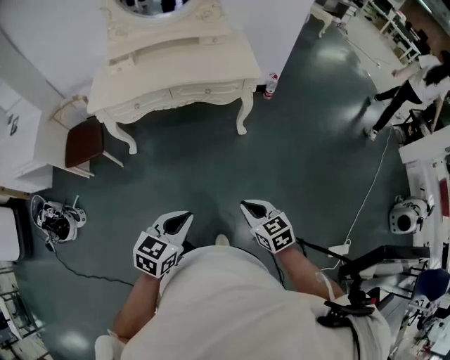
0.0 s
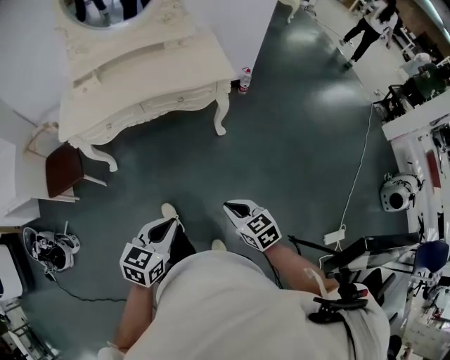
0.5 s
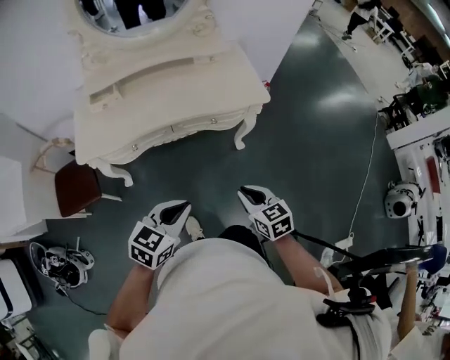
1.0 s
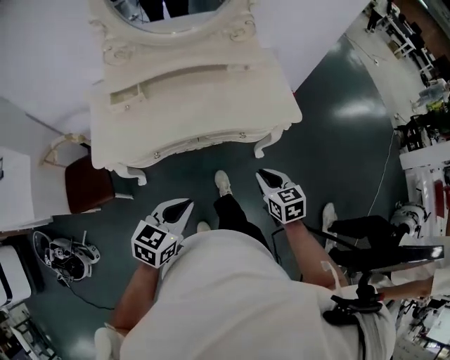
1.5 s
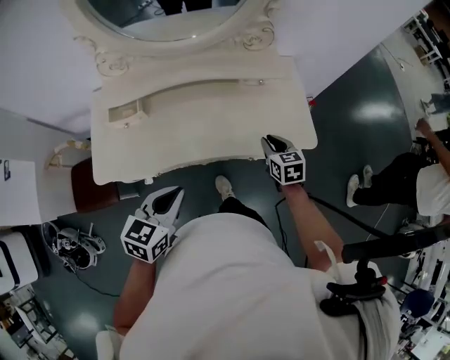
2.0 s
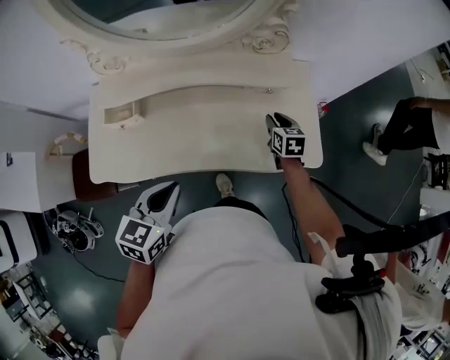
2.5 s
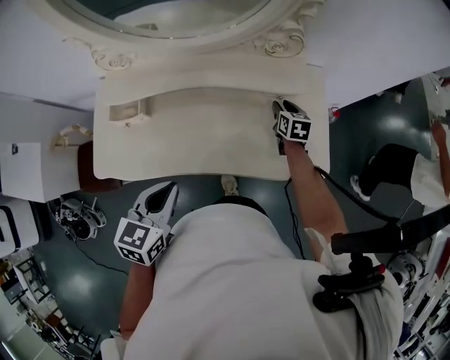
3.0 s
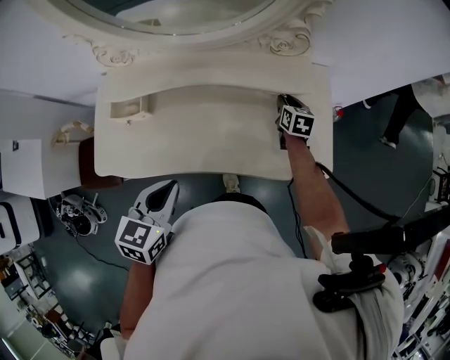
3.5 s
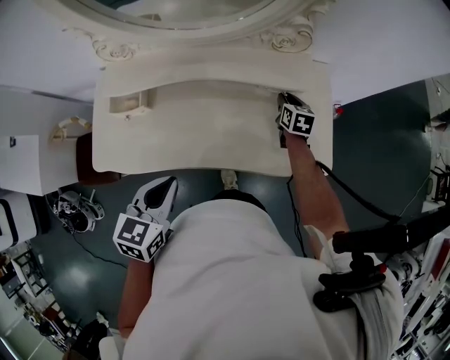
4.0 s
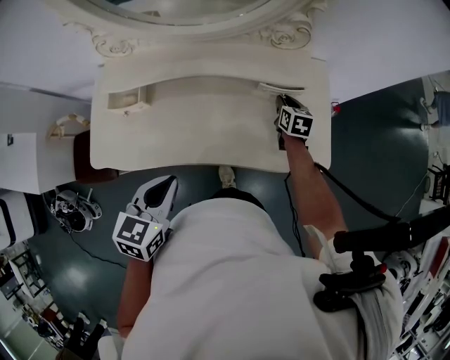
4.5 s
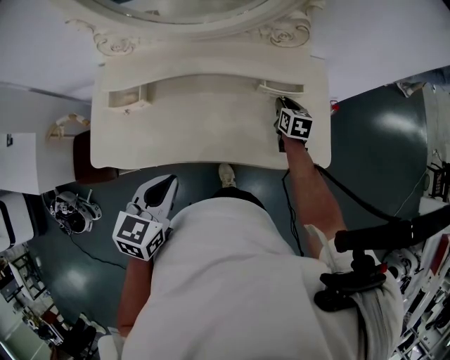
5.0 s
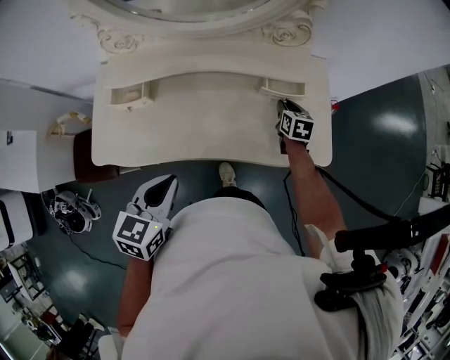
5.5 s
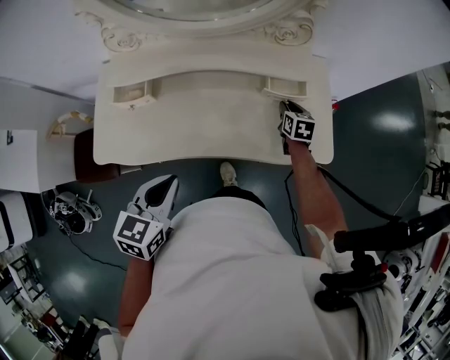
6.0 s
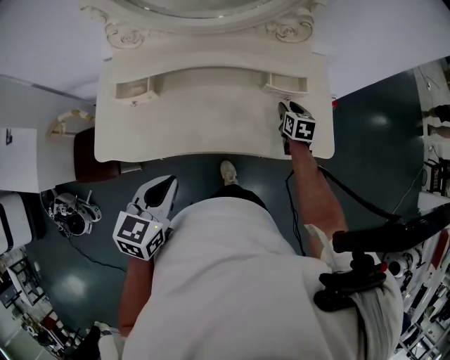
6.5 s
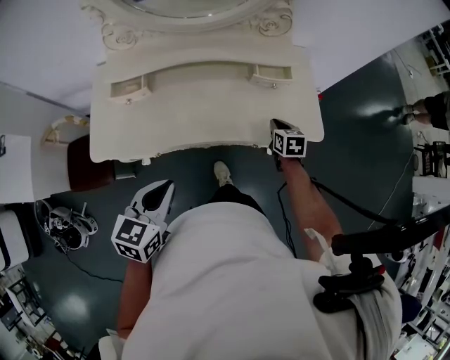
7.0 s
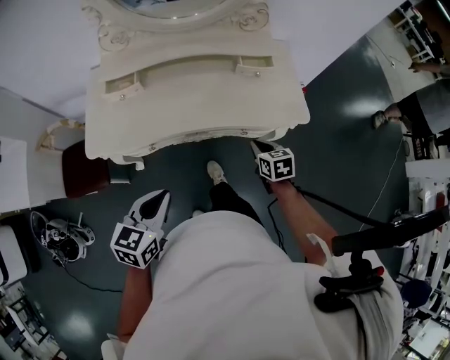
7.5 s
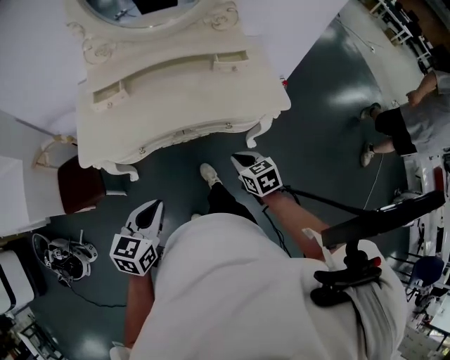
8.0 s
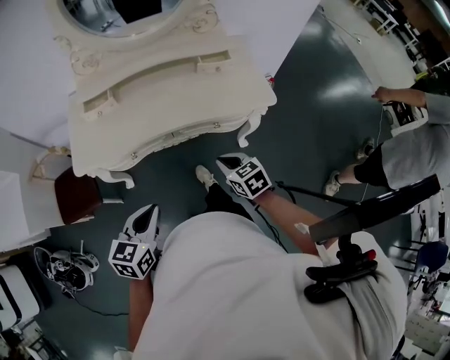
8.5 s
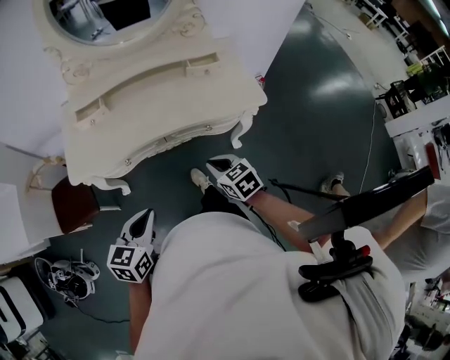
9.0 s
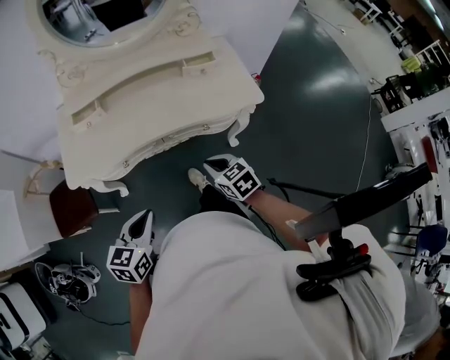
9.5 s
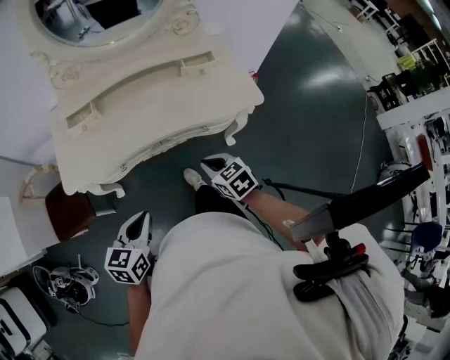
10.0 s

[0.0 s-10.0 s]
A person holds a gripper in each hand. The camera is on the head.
0.0 to 2.0 s: The pair of grippers is taken forward, approximately 70 cm.
2.0 to 4.0 s: The right gripper heads forward, covering approximately 25 cm, while the left gripper moves forward, approximately 10 cm.
4.0 to 6.0 s: The left gripper ends up approximately 5 cm from where it was, while the right gripper shifts some 5 cm backward.
6.0 to 8.0 s: The left gripper travels backward by approximately 25 cm; the right gripper heads backward, covering some 40 cm, and closes up.
8.0 to 10.0 s: The grippers make only small movements.

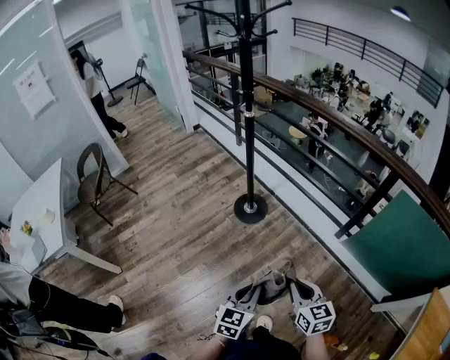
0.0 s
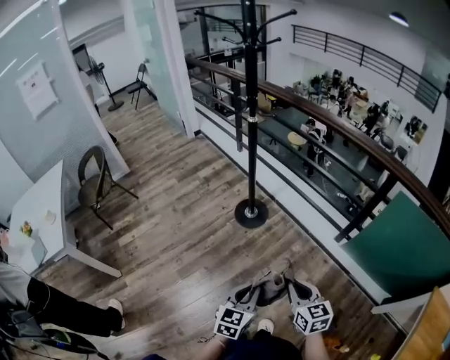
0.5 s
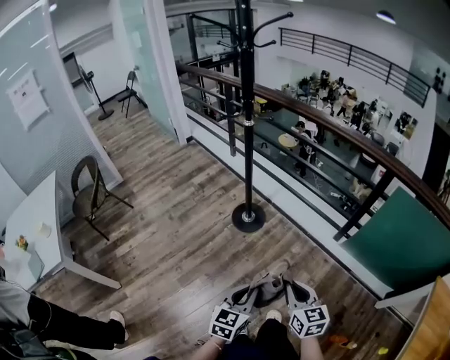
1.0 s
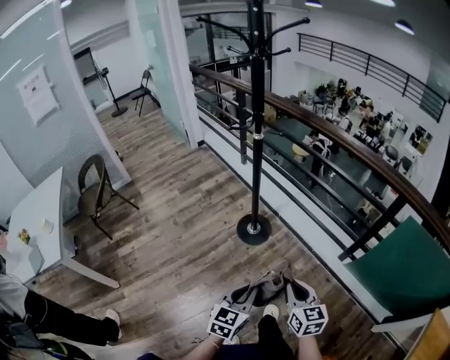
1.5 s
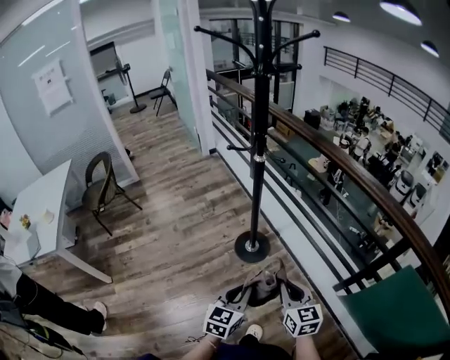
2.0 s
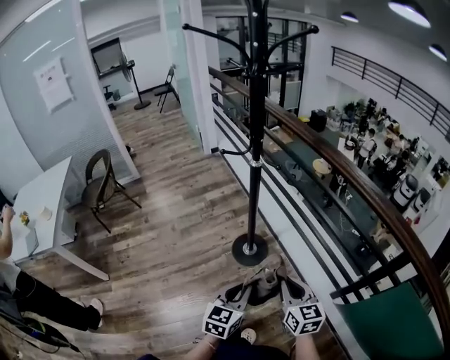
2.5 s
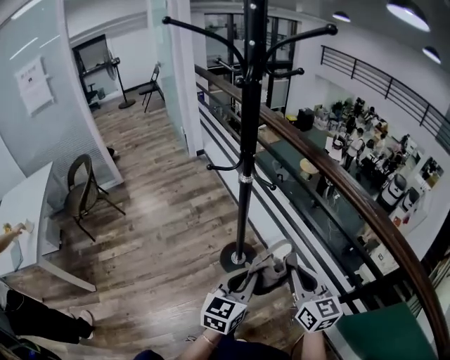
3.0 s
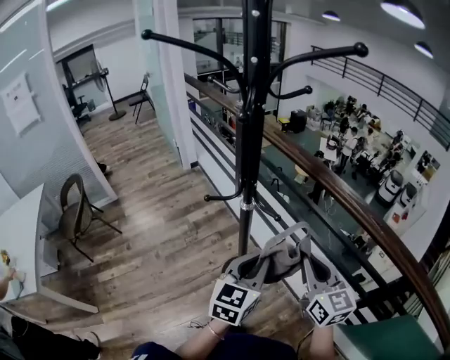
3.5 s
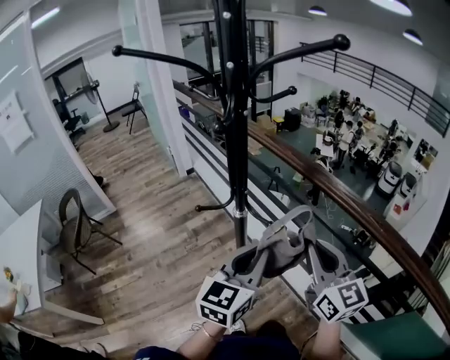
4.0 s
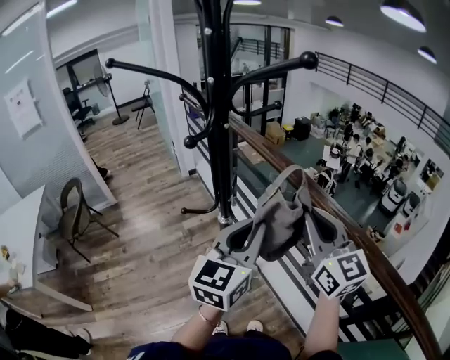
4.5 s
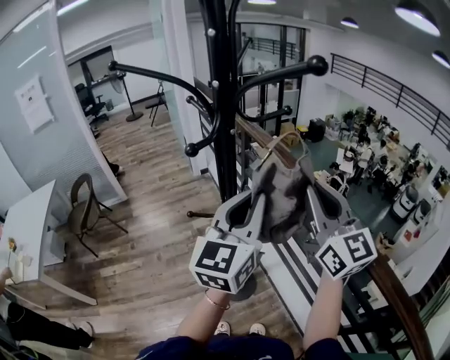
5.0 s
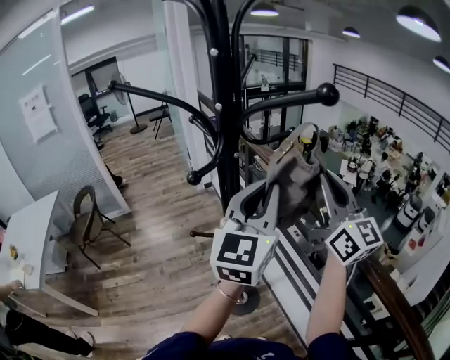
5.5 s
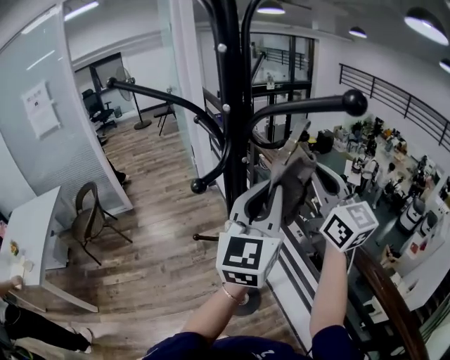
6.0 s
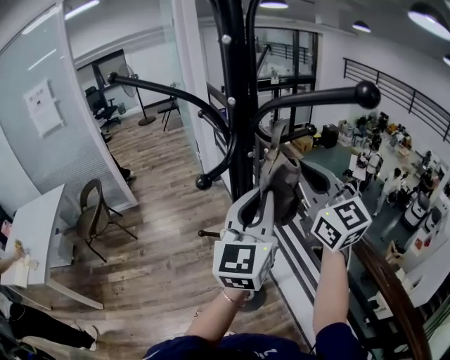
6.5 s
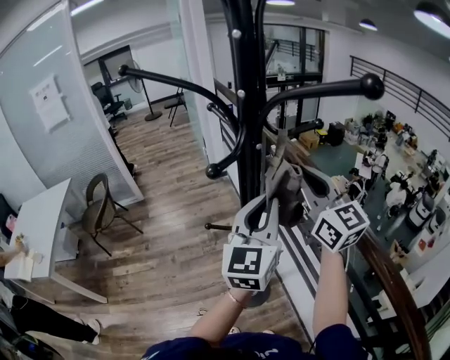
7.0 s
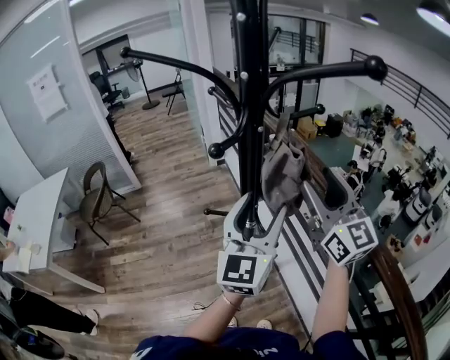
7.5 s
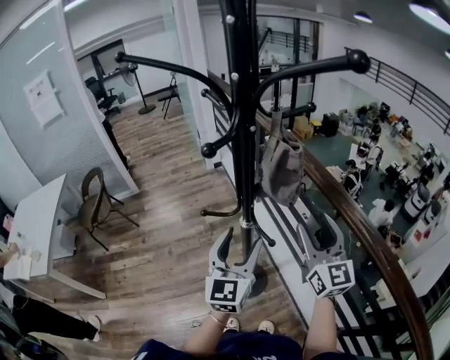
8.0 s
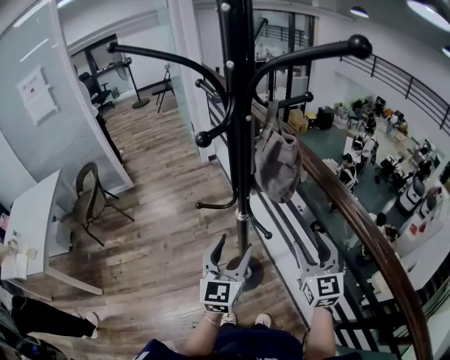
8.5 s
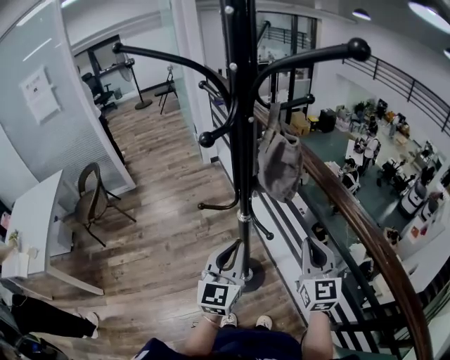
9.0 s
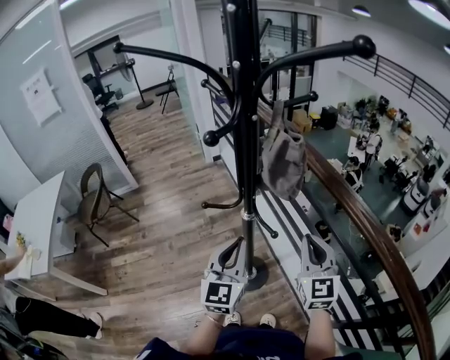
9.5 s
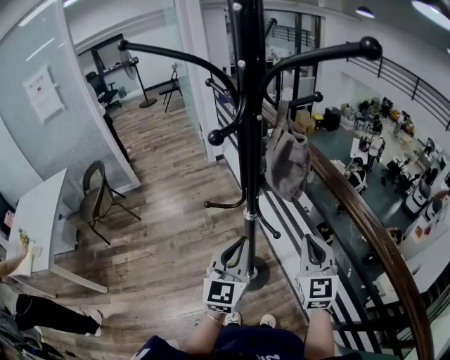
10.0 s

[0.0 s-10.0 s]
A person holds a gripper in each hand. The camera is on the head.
0.0 to 2.0 s: The two grippers go roughly 20 cm forward.
2.0 to 4.0 s: Both grippers move forward and upward, about 40 cm. The right gripper turns by roughly 20 degrees.
4.0 to 6.0 s: The left gripper heads upward and forward, covering approximately 25 cm, and rotates roughly 30 degrees; the right gripper heads forward and upward, covering roughly 30 cm, and changes its angle by approximately 20 degrees.
6.0 to 8.0 s: The left gripper travels downward and to the left by approximately 20 cm, and opens. The right gripper moves downward and backward, approximately 20 cm, and opens.
8.0 to 10.0 s: The left gripper closes. Meanwhile the right gripper shifts approximately 10 cm downward, rotates about 20 degrees, and closes up.

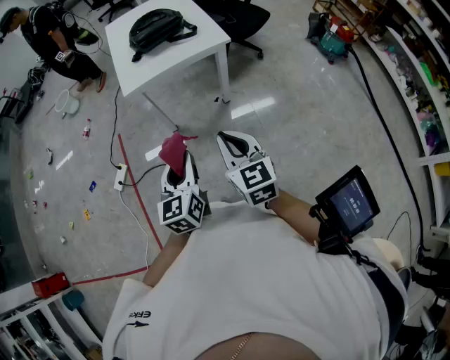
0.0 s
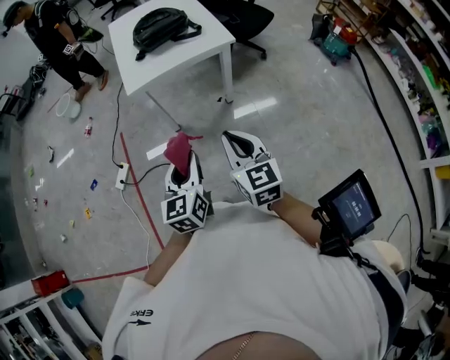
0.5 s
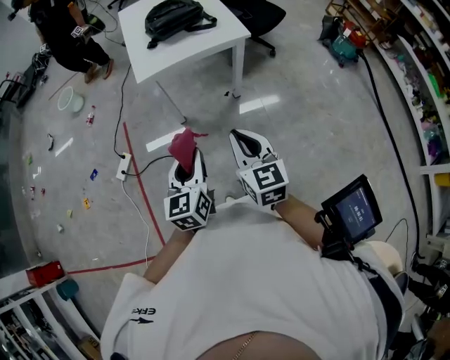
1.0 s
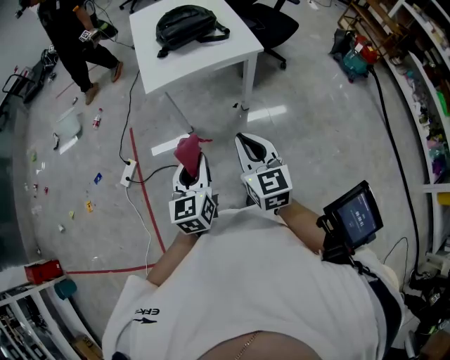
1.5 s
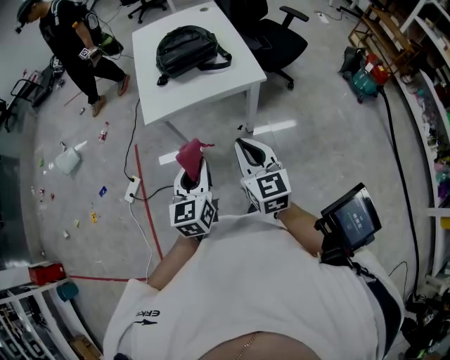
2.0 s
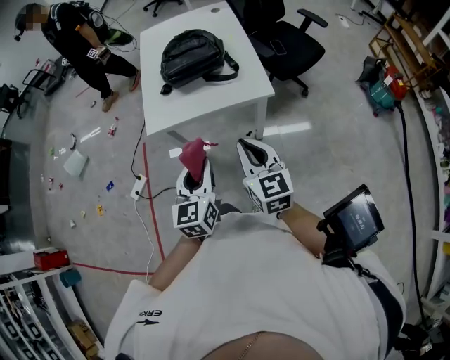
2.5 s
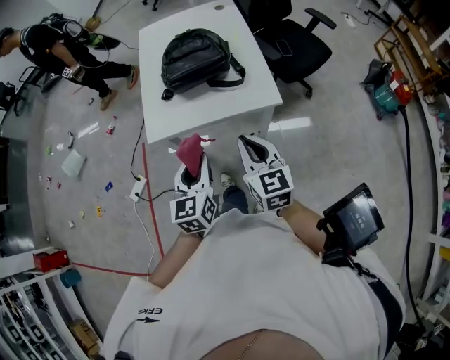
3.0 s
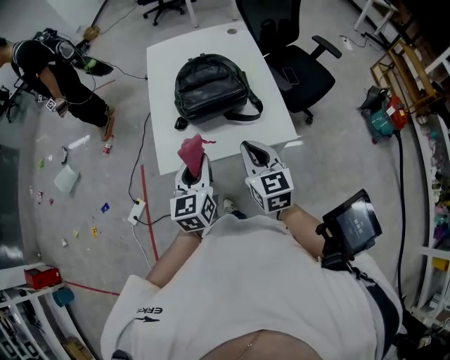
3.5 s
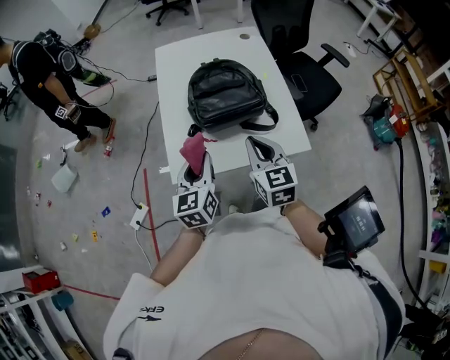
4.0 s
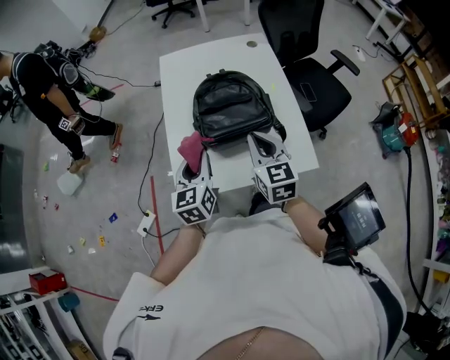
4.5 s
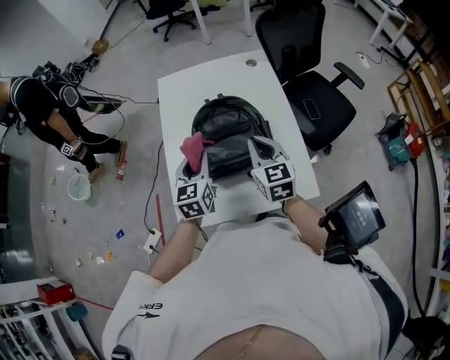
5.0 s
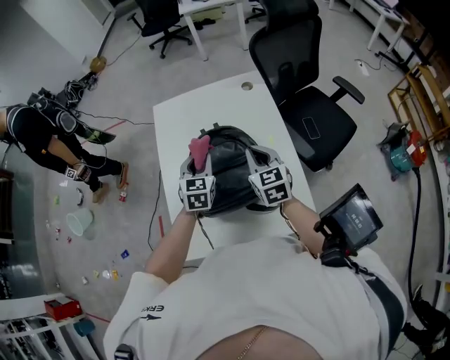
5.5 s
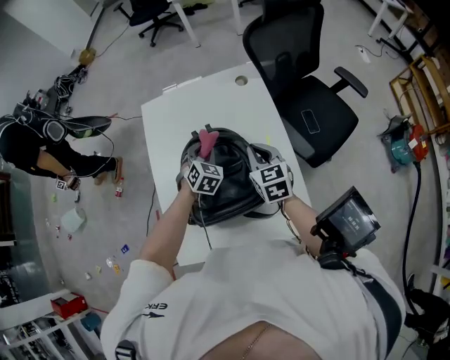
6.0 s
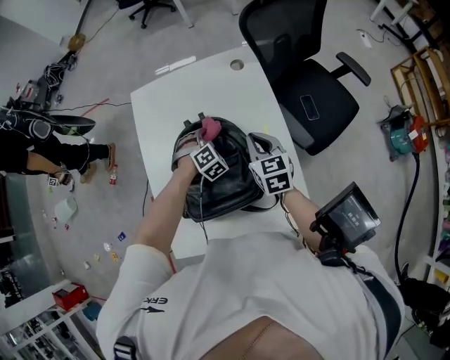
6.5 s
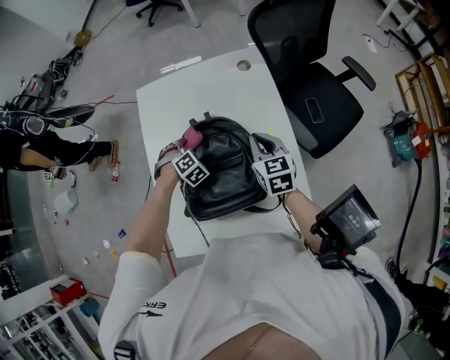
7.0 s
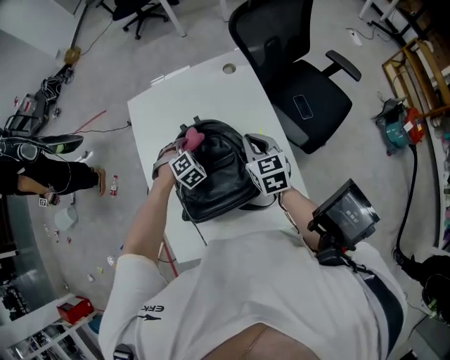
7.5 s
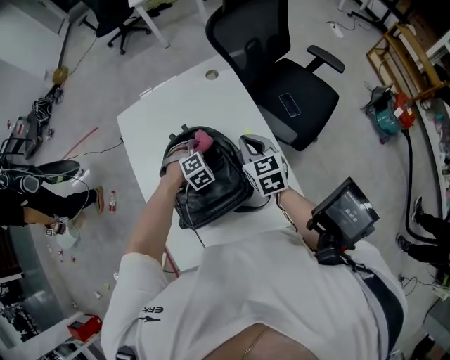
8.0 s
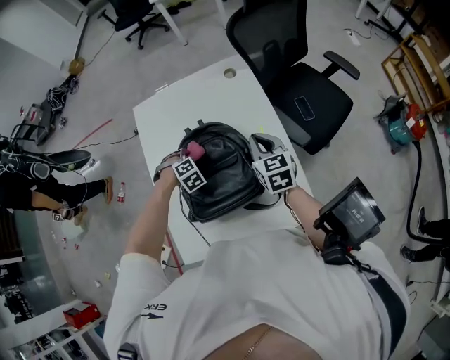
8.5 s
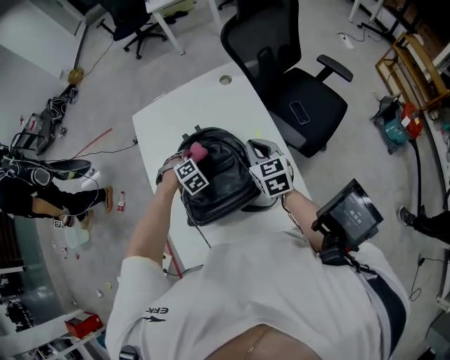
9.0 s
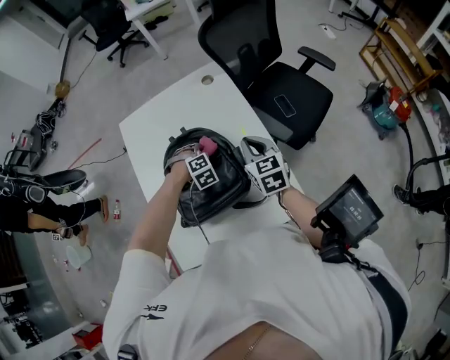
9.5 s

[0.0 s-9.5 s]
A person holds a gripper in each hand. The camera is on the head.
0.0 to 2.0 s: Both grippers travel together forward, some 20 cm.
2.0 to 4.0 s: The two grippers go roughly 35 cm forward.
4.0 to 5.5 s: The two grippers go roughly 30 cm forward. The left gripper turns by approximately 30 degrees.
5.5 to 7.5 s: The right gripper shifts about 10 cm to the right and forward; the left gripper is displaced downward and forward by approximately 15 cm, and rotates around the line of its fingers by about 50 degrees, clockwise from behind.
7.5 to 9.5 s: The right gripper moves some 5 cm, while the left gripper moves left and right over about 10 cm, changing direction 2 times, and turns by about 20 degrees.
